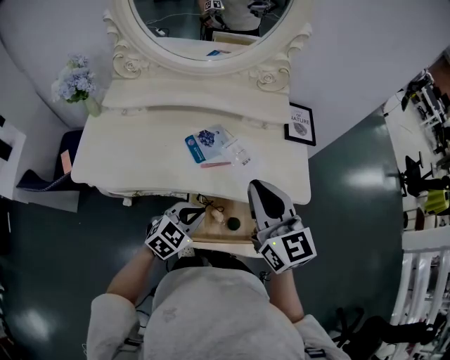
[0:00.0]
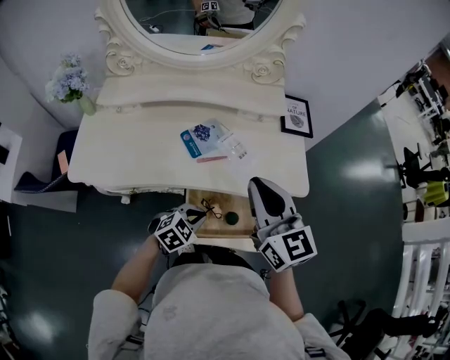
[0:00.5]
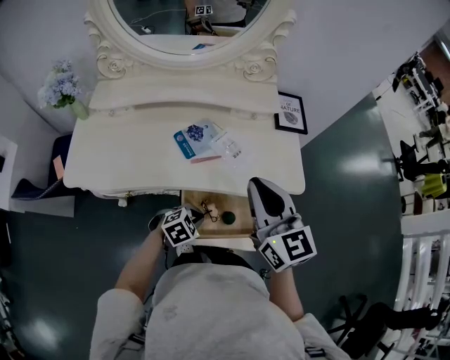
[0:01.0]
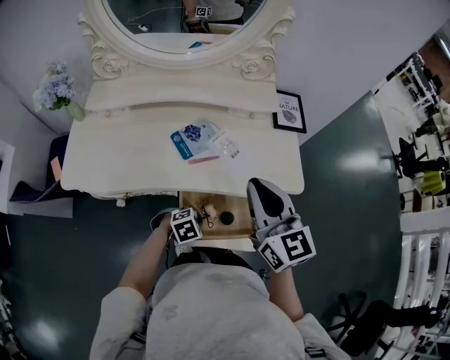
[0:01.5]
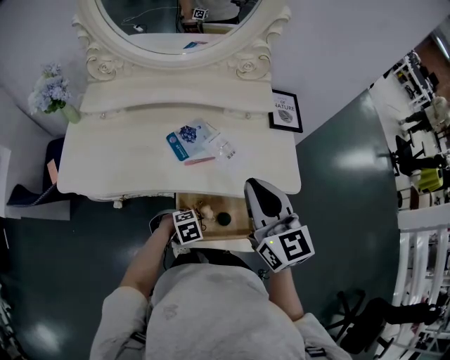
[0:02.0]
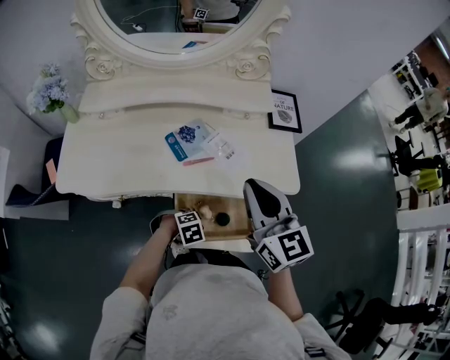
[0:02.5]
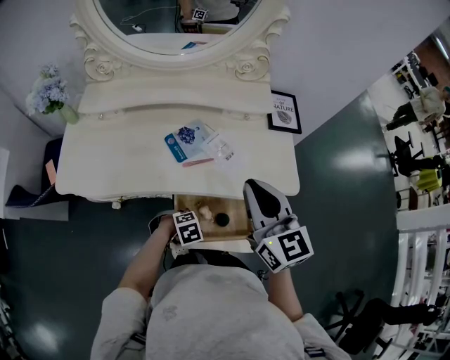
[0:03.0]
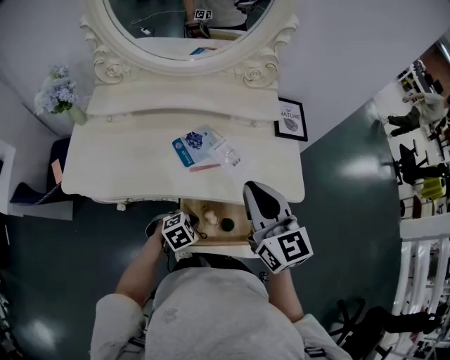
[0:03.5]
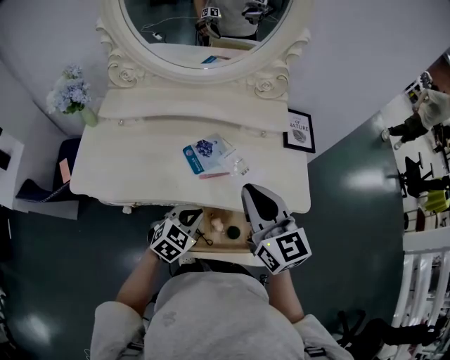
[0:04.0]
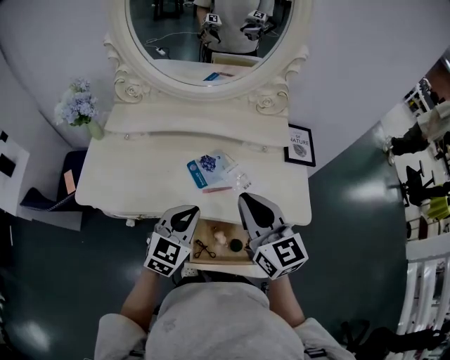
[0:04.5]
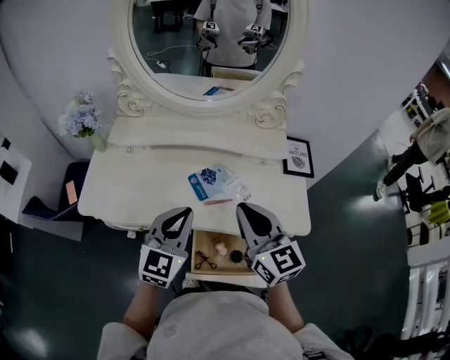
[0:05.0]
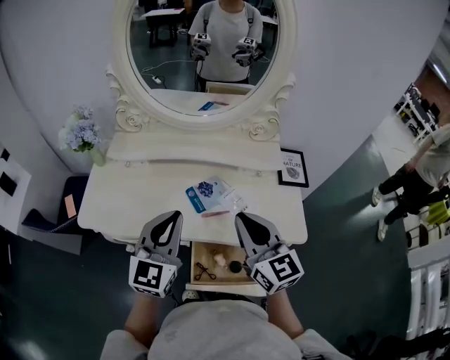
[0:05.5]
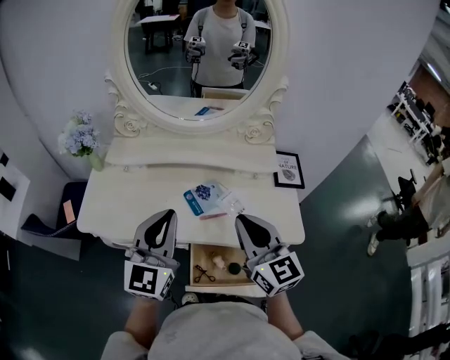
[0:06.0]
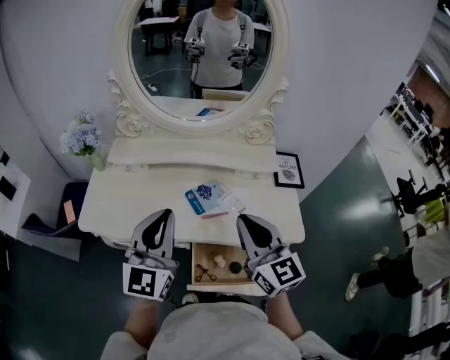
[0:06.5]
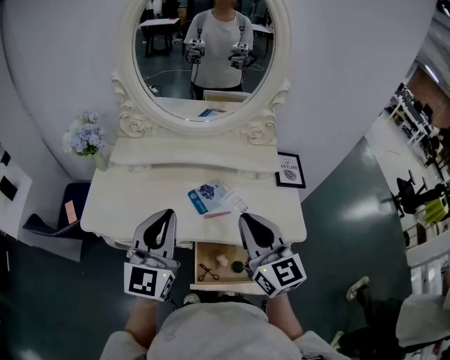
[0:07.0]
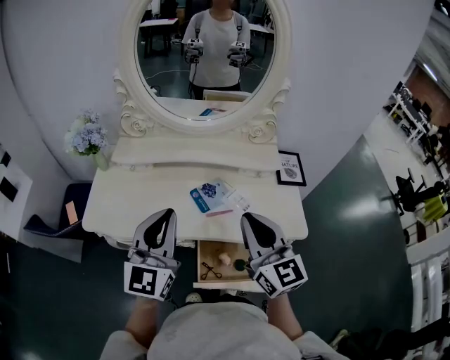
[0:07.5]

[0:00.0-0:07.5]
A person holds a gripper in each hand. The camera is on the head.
0:00.0 to 0:02.0: The left gripper heads downward, covering roughly 15 cm, and angles its fingers downward, by roughly 40 degrees.
0:02.0 to 0:04.0: The left gripper is displaced upward by roughly 15 cm, and tilts its fingers some 30 degrees upward.
0:04.0 to 0:05.5: The left gripper moves upward, about 25 cm, and points its fingers some 40 degrees further upward.
0:05.5 to 0:07.5: The left gripper shifts roughly 5 cm upward.

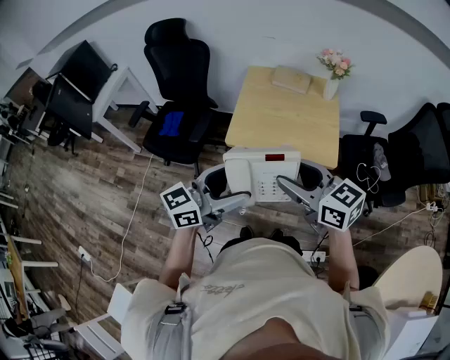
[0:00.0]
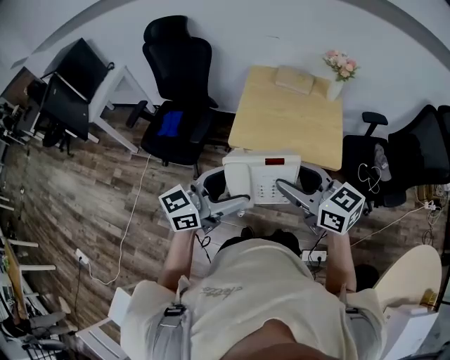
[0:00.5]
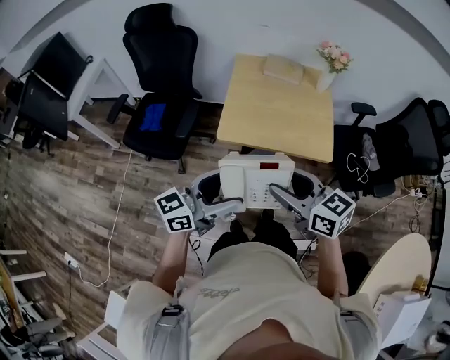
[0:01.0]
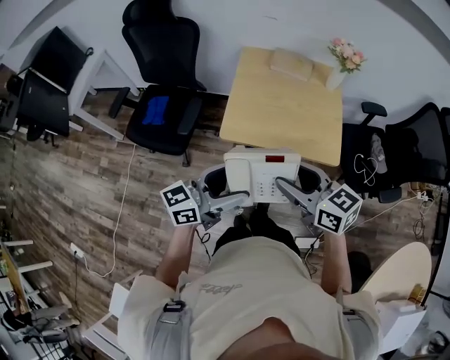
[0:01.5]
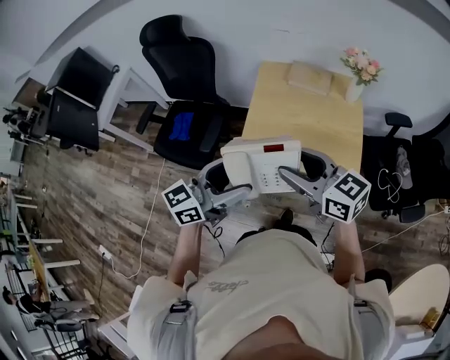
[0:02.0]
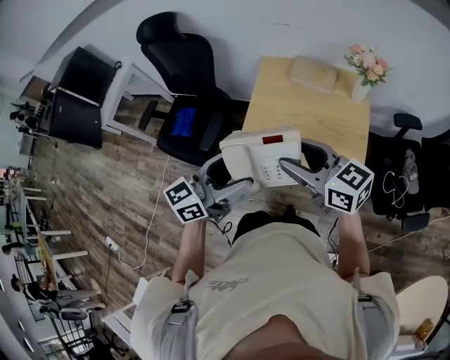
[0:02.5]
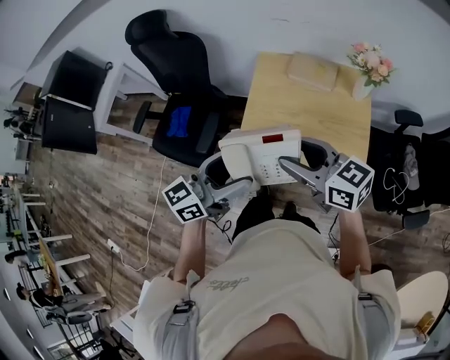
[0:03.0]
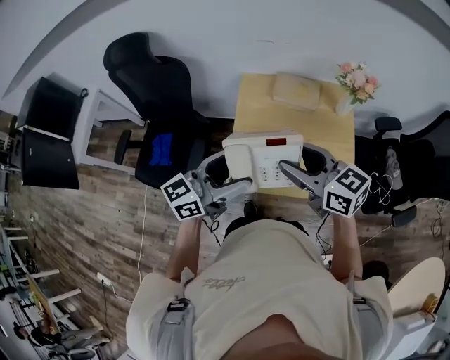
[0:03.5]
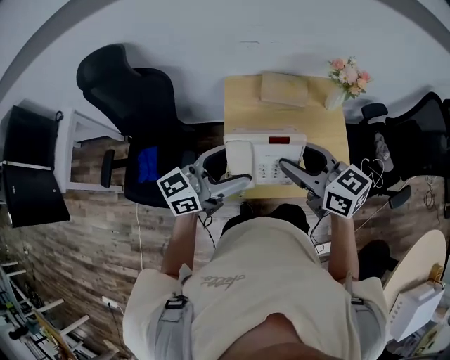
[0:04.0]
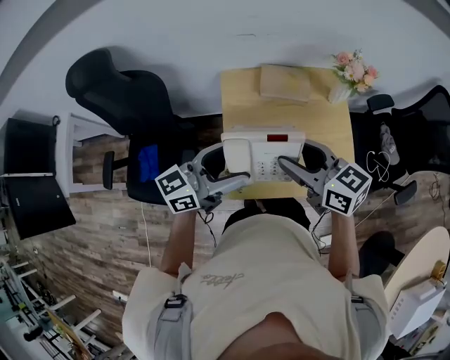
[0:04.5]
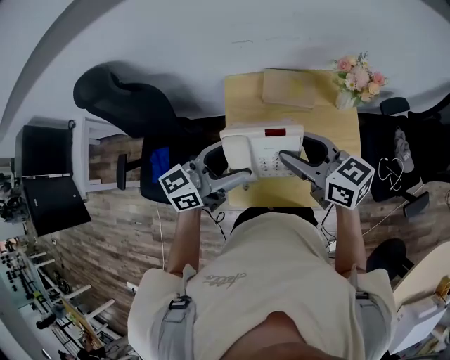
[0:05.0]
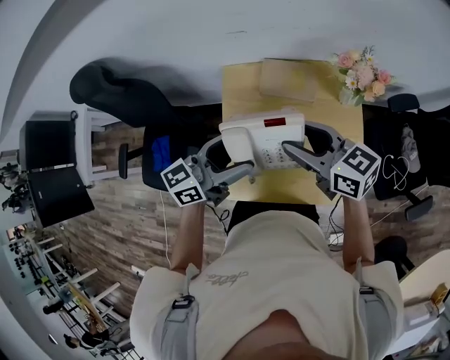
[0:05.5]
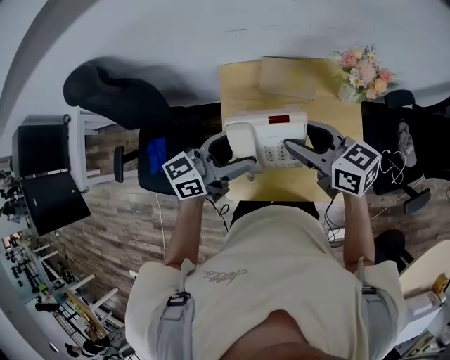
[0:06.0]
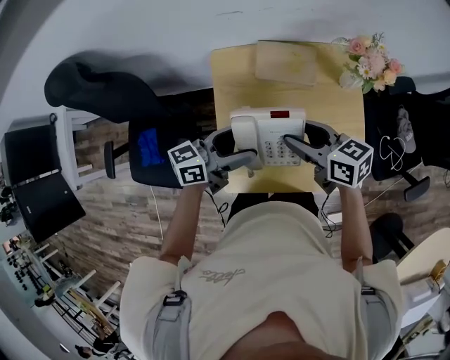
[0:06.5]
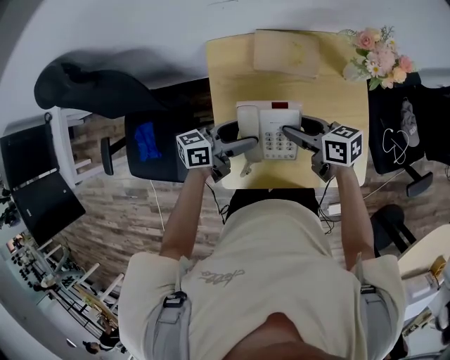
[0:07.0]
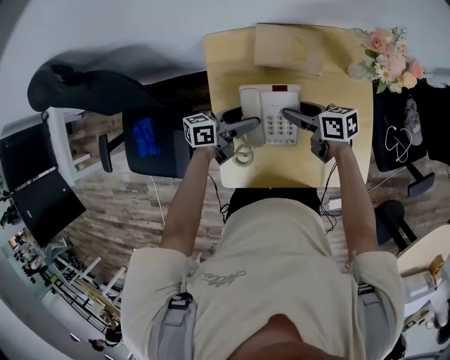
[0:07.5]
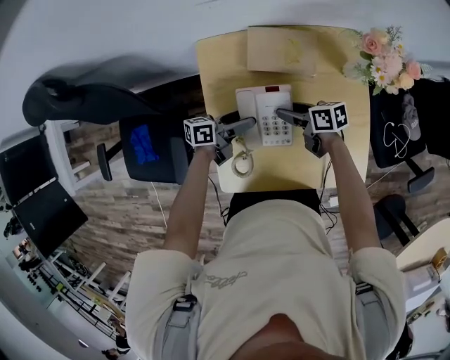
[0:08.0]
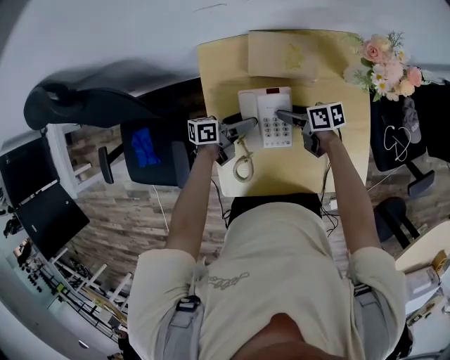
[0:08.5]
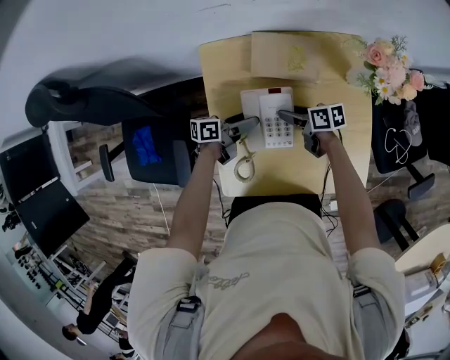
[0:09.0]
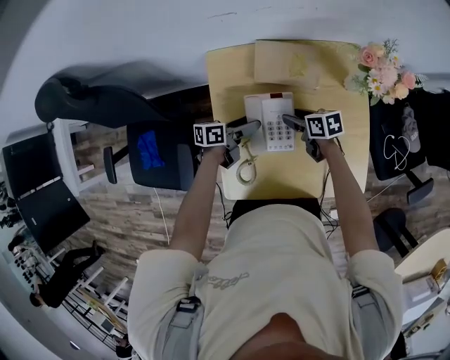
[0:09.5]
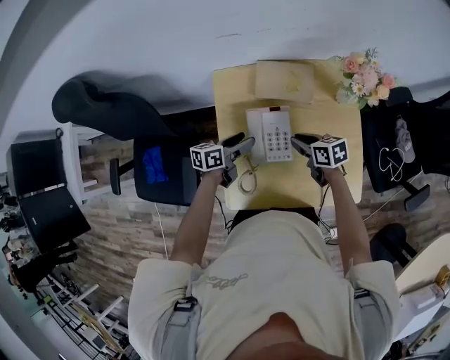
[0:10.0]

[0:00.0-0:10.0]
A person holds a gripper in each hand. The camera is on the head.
0:00.0 to 0:02.0: Both grippers move forward, some 15 cm.
0:02.0 to 0:04.0: Both grippers travel together forward, roughly 20 cm.
0:04.0 to 0:06.0: The grippers both shift forward, to the right and downward by approximately 15 cm.
0:06.0 to 0:08.0: The grippers both shift downward by about 30 cm. The left gripper turns by approximately 40 degrees. Meanwhile the right gripper rotates some 40 degrees.
0:08.0 to 0:10.0: The right gripper is displaced upward by some 5 cm, and closes. Meanwhile the left gripper moves some 5 cm.

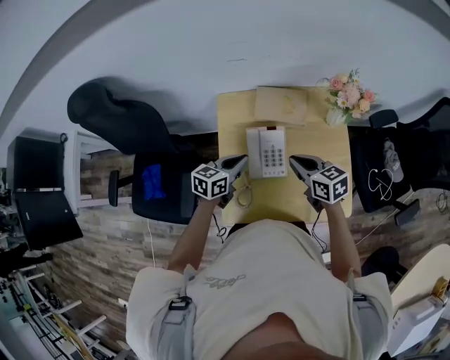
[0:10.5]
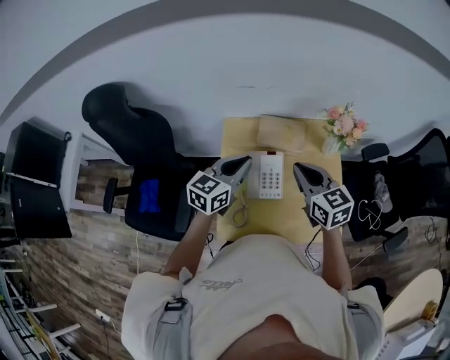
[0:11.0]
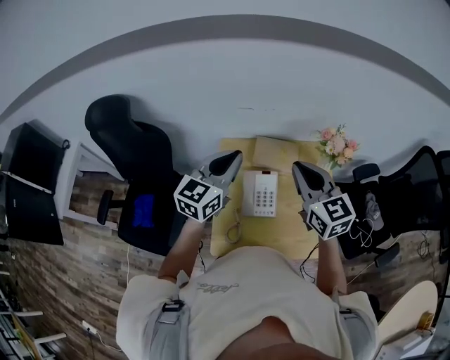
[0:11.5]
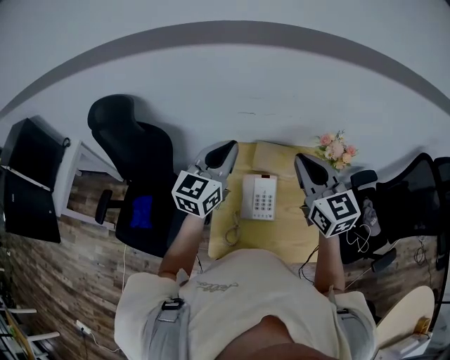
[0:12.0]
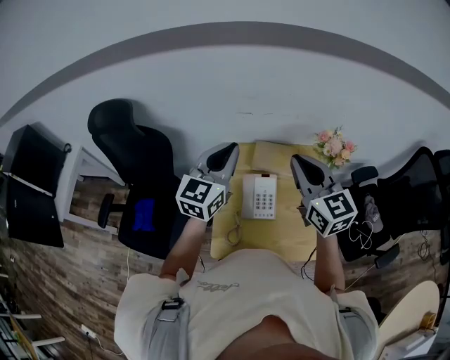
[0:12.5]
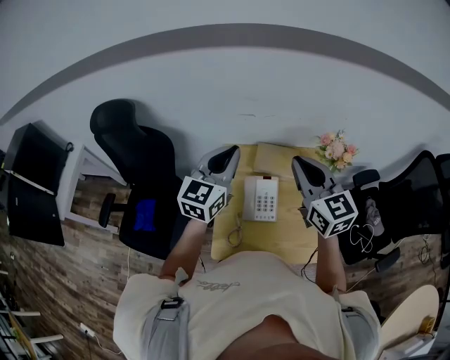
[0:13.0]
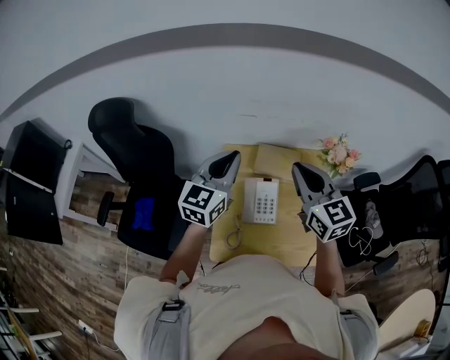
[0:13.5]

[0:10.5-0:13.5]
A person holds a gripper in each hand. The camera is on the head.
0:10.5 to 0:12.0: Both grippers travel together upward, approximately 30 cm. The left gripper changes its angle by some 40 degrees; the right gripper turns by approximately 40 degrees.
0:12.0 to 0:13.5: The grippers make only small movements.

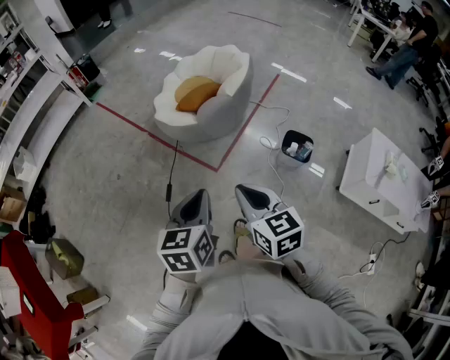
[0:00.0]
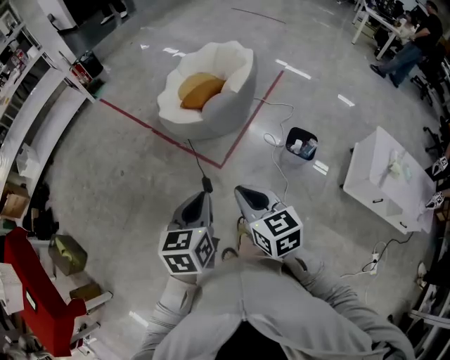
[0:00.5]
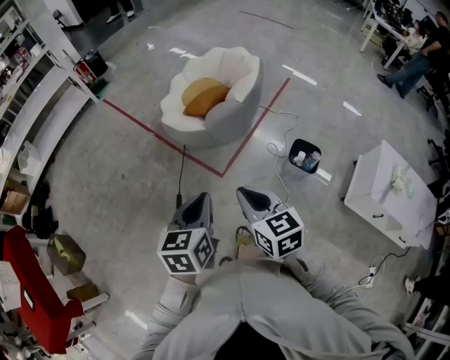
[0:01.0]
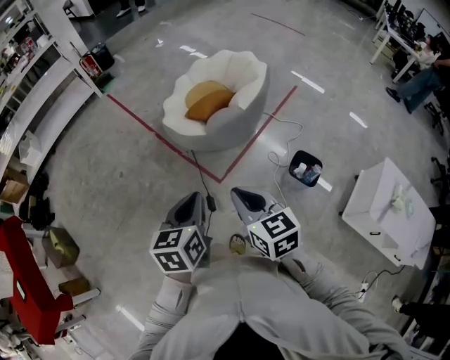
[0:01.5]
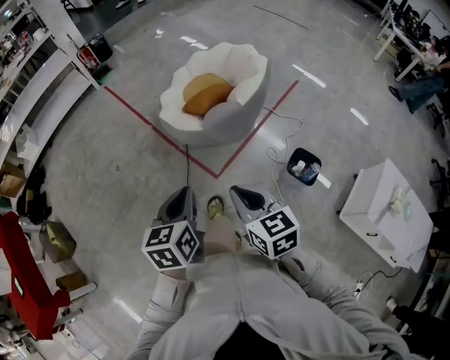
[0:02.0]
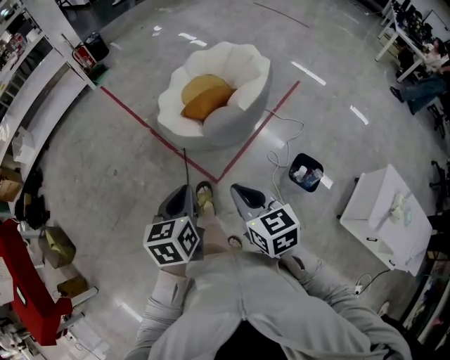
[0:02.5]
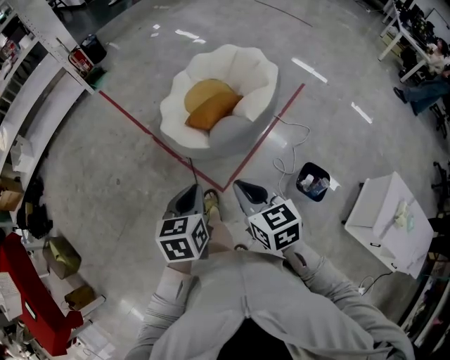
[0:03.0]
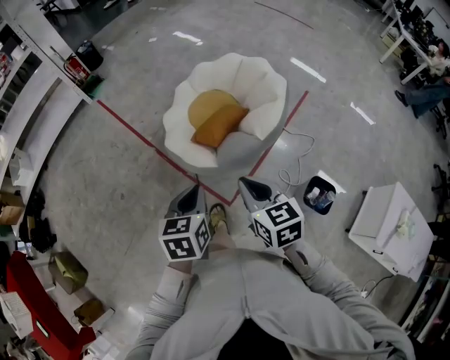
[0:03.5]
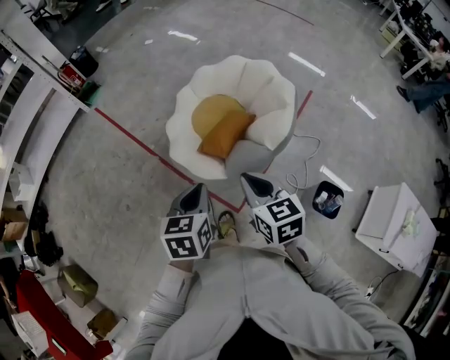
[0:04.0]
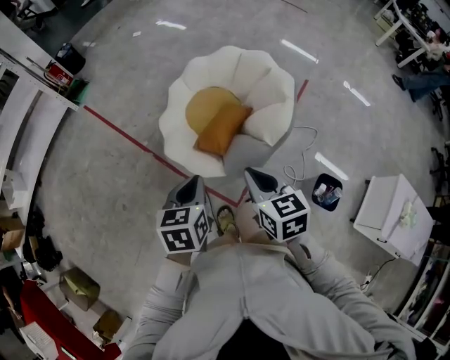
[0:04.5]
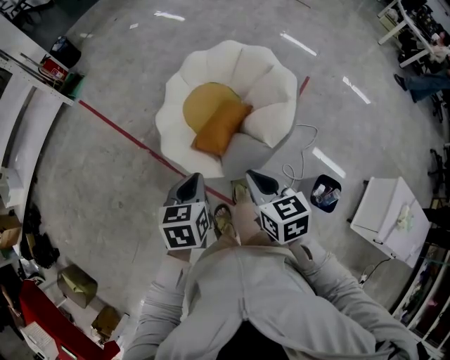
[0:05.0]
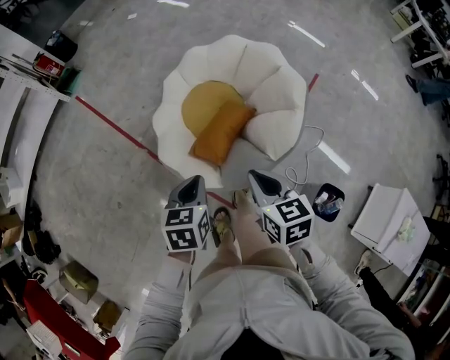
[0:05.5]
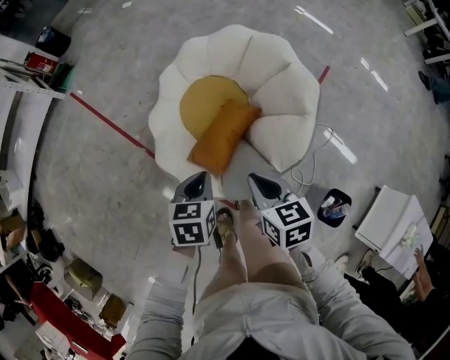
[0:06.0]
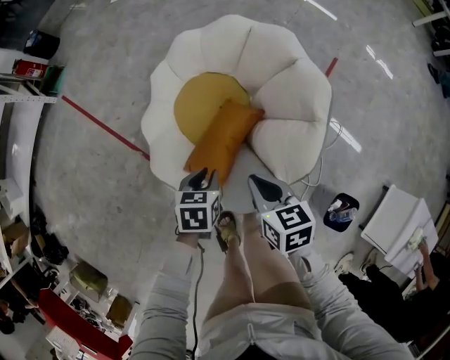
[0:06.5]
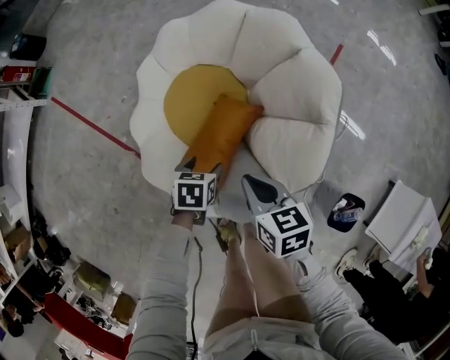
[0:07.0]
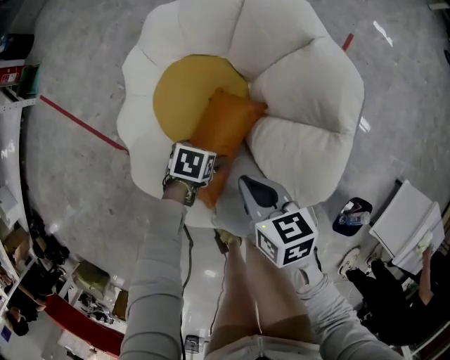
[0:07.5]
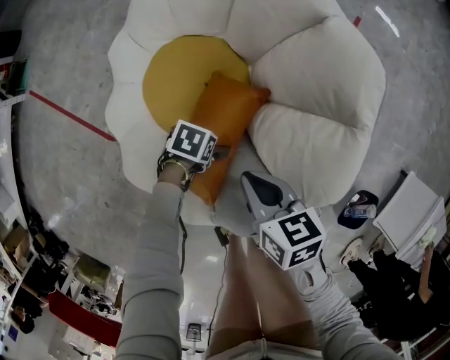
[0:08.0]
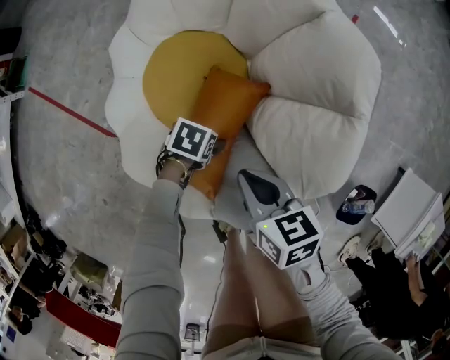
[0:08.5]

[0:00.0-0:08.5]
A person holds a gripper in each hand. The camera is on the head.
0:00.0 to 0:02.0: Both grippers move forward, some 10 cm.
0:02.0 to 0:04.0: The grippers both shift forward by roughly 35 cm.
0:04.0 to 0:06.5: The left gripper goes some 40 cm downward and forward, and swivels some 30 degrees. The right gripper shifts some 35 cm forward and downward, and turns by approximately 20 degrees.
0:06.5 to 0:08.5: The right gripper goes about 15 cm downward. The left gripper shifts about 25 cm downward, rotates approximately 40 degrees, and opens up.
